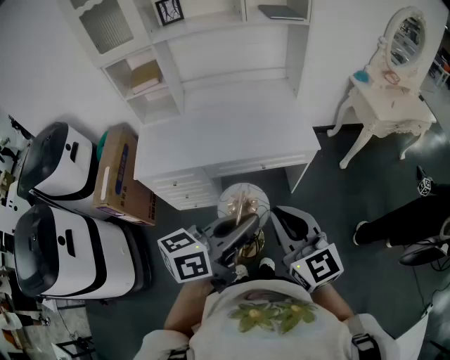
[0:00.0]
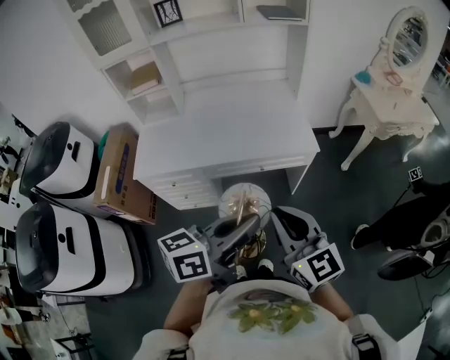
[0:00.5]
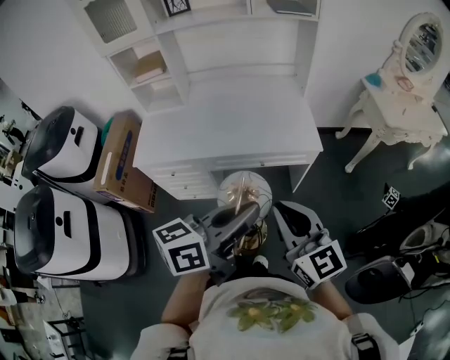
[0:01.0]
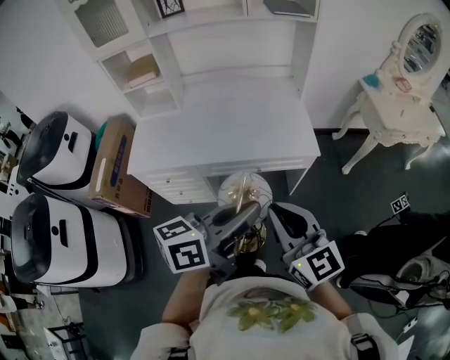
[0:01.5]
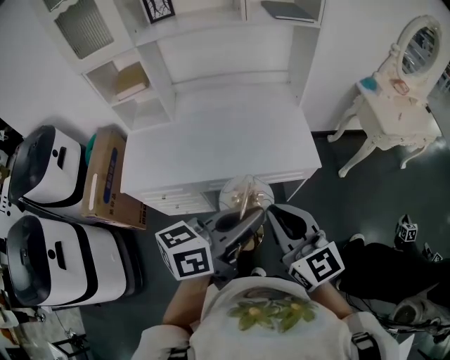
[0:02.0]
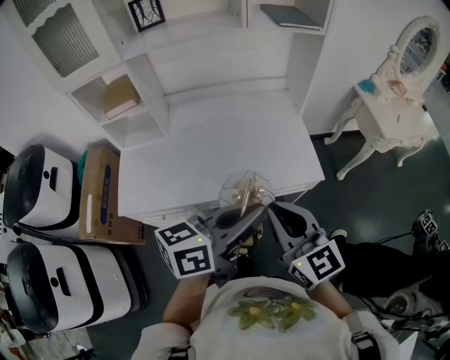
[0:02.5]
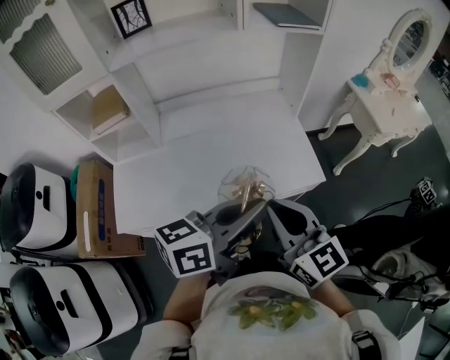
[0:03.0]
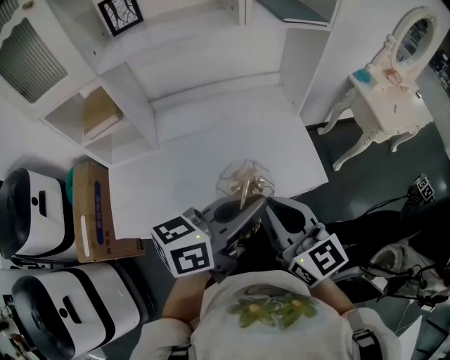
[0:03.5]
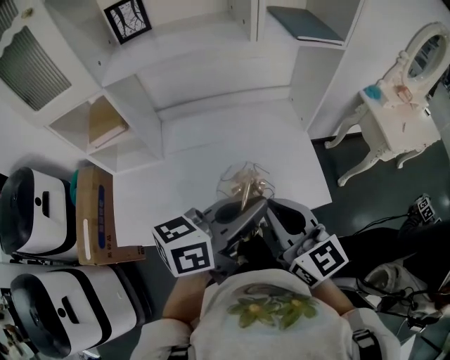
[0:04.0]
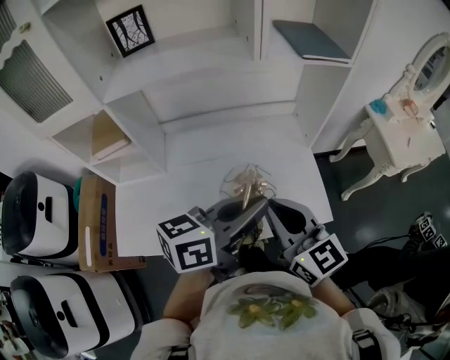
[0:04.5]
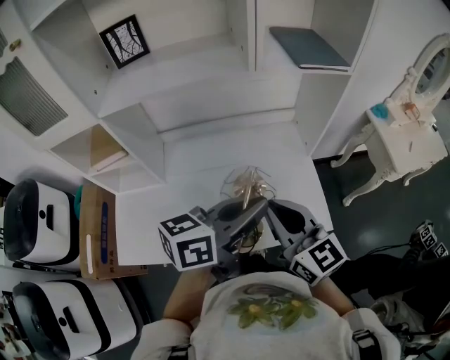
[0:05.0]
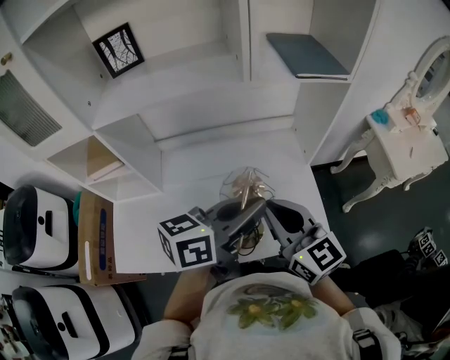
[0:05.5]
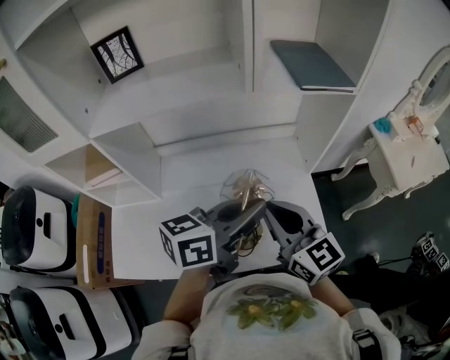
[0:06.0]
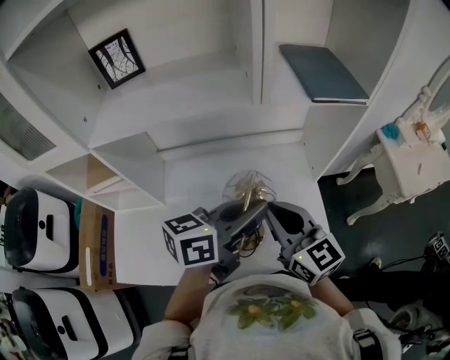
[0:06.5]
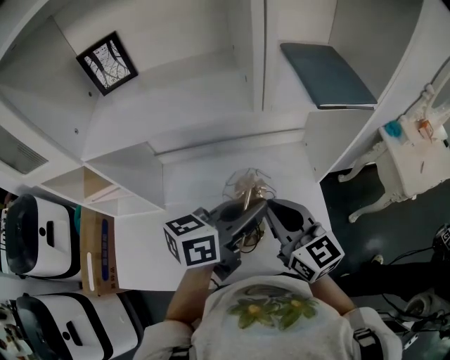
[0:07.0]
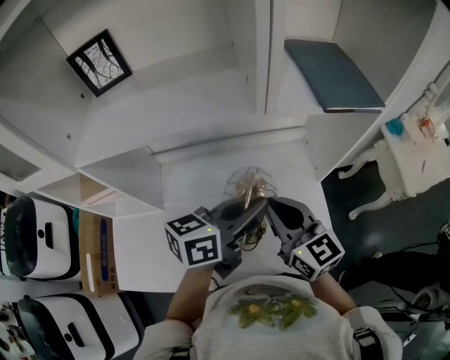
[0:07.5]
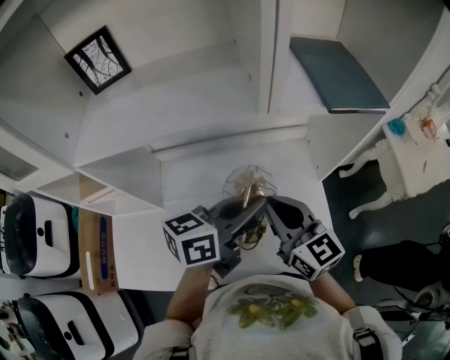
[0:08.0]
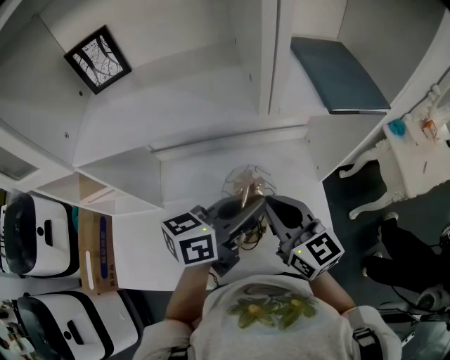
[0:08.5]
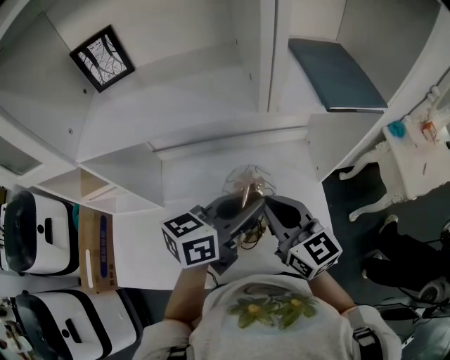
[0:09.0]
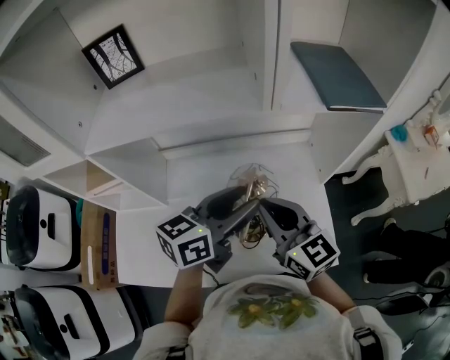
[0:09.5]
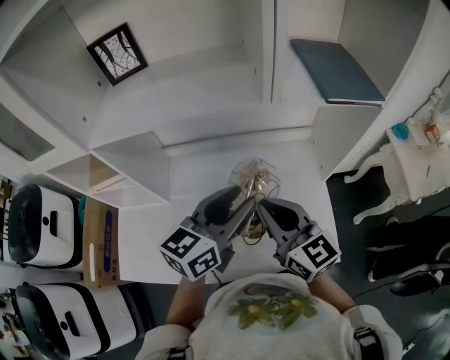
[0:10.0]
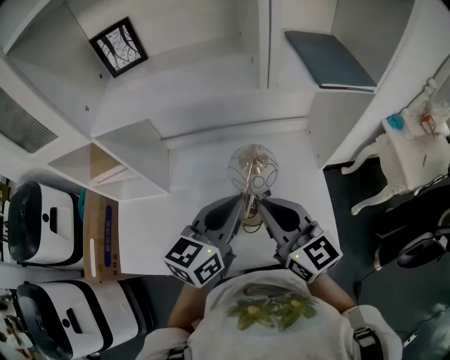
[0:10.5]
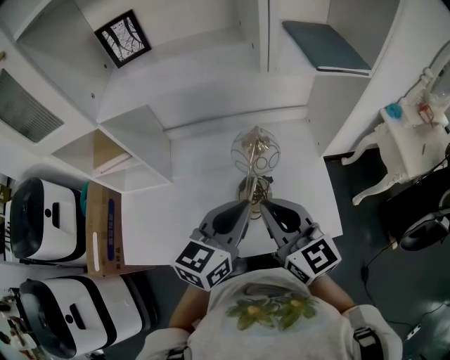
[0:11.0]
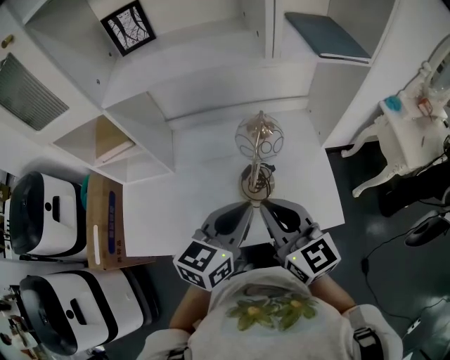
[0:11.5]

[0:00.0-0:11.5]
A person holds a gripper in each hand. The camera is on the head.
0:00.0 to 0:02.0: Both grippers travel together forward, approximately 15 cm.
0:02.0 to 0:04.0: The grippers both shift forward and to the left by some 25 cm.
0:04.0 to 0:06.0: The grippers both shift forward by about 15 cm.
0:06.0 to 0:07.5: Both grippers travel together forward, some 10 cm.
0:07.5 to 0:09.5: The left gripper opens.
0:09.5 to 0:11.5: Both grippers travel together backward, about 15 cm. The left gripper closes up.

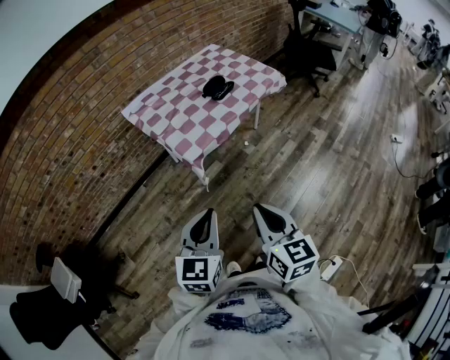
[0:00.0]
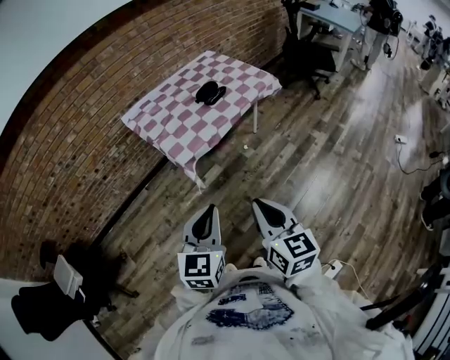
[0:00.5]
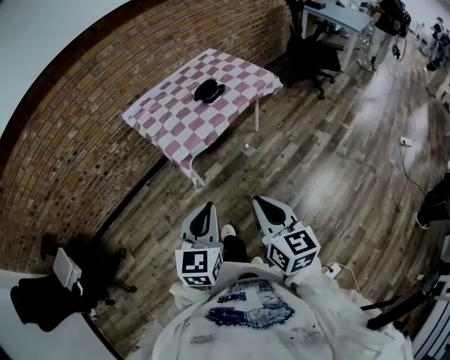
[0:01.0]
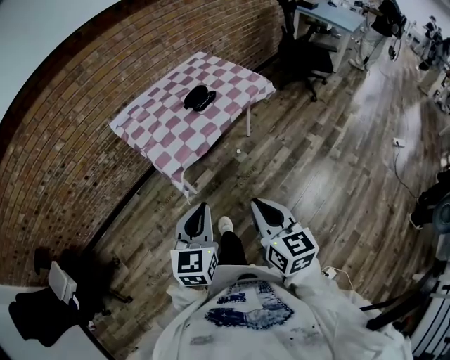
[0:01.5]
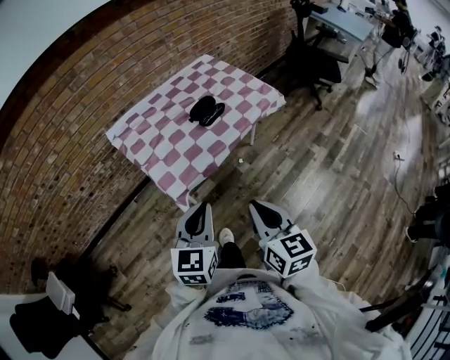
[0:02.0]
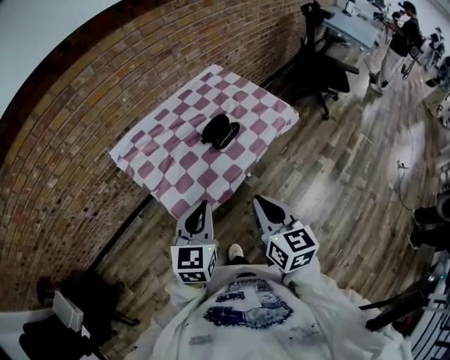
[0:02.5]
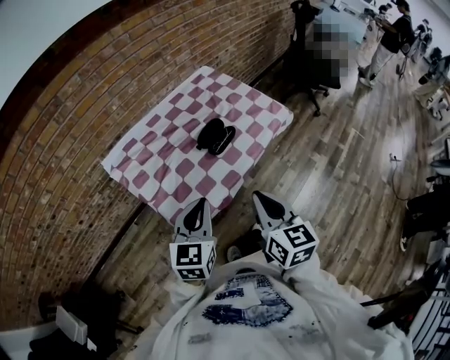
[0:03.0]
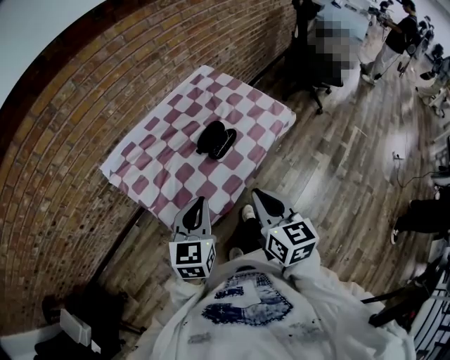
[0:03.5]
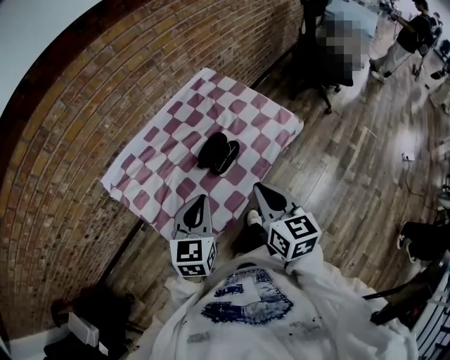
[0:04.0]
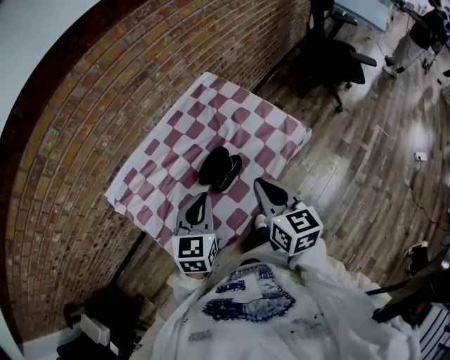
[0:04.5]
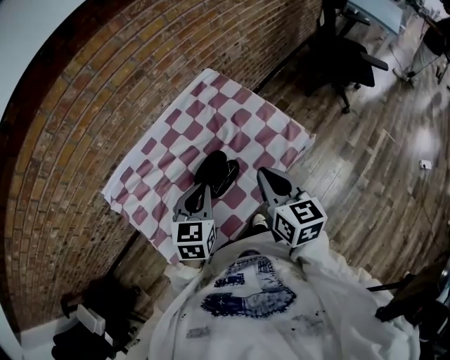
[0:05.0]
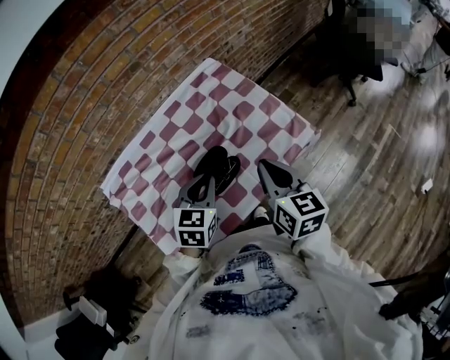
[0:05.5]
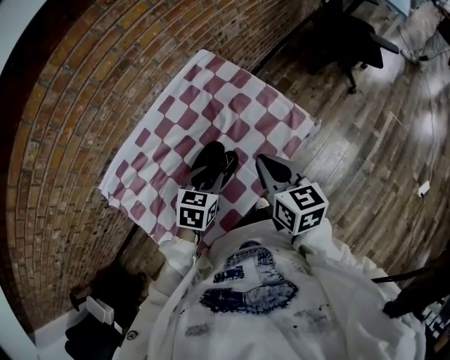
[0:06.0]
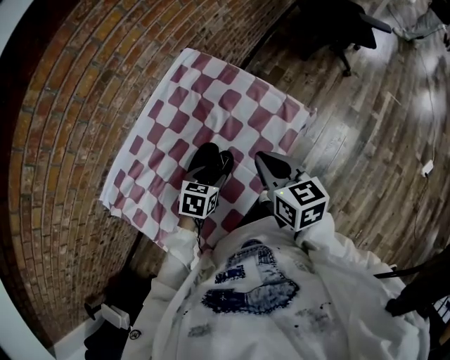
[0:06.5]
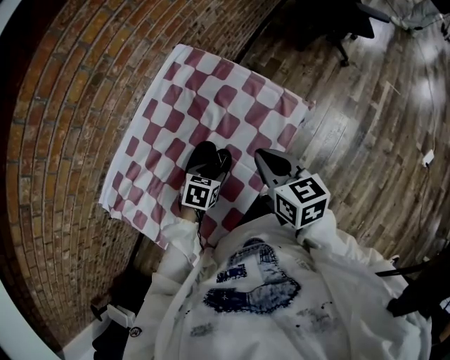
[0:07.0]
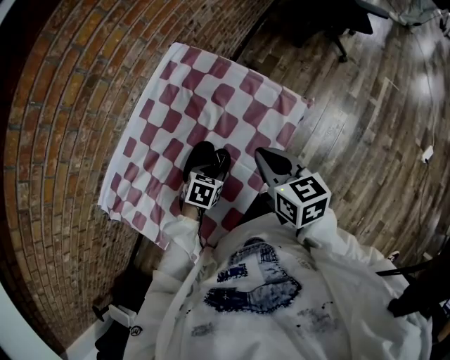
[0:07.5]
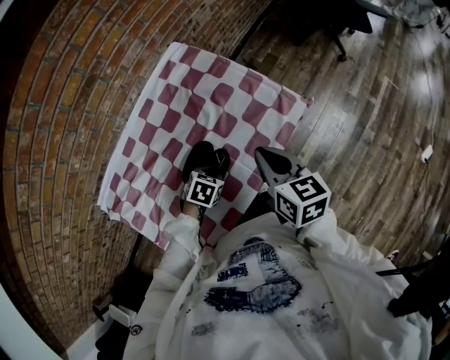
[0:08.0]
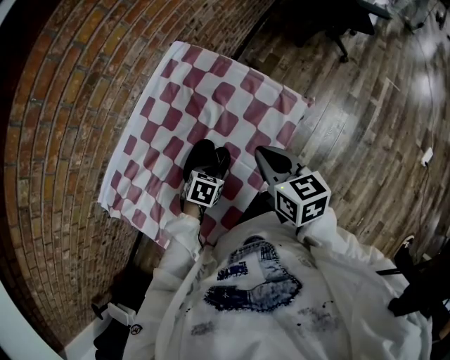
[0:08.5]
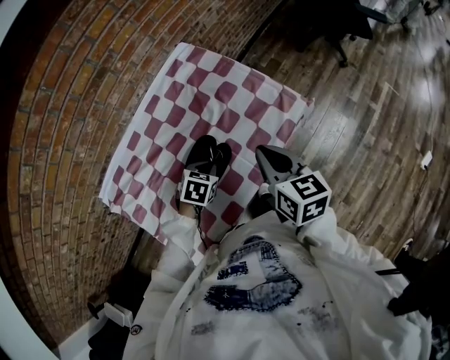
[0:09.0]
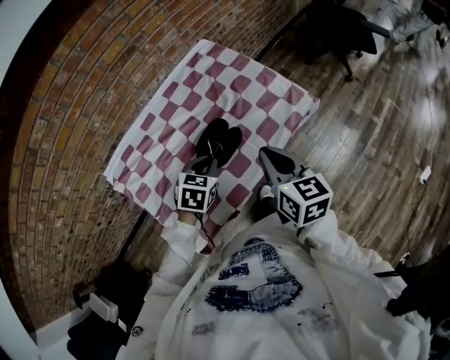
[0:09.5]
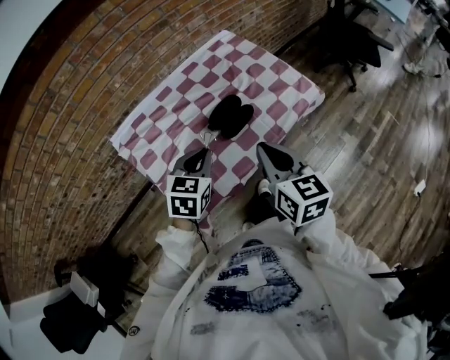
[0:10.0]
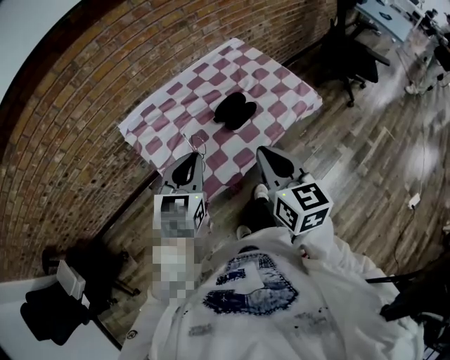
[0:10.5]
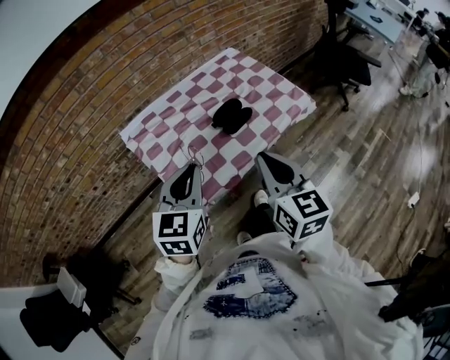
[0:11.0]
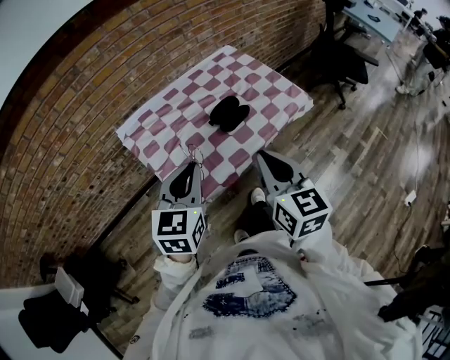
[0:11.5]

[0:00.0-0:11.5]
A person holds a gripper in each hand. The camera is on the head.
0:00.0 to 0:02.0: Both grippers travel together forward and to the right, some 20 cm.
0:02.0 to 0:04.0: The grippers both shift forward by some 30 cm.
0:04.0 to 0:06.0: The left gripper moves forward, downward and to the right, some 25 cm, changes its angle by some 30 degrees, and opens, while the right gripper is displaced forward and to the right by about 20 cm.
0:06.0 to 0:07.5: The left gripper shifts approximately 15 cm downward, rotates roughly 30 degrees, and opens and closes again.
0:07.5 to 0:09.5: The right gripper goes approximately 10 cm backward and upward. Meanwhile the left gripper travels upward and backward by approximately 15 cm, changes its angle by about 20 degrees, and closes up.
0:09.5 to 0:11.5: Both grippers travel together backward, upward and to the left, approximately 30 cm. The left gripper tilts its fingers some 30 degrees upward.

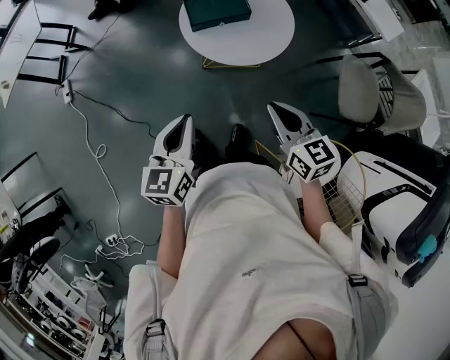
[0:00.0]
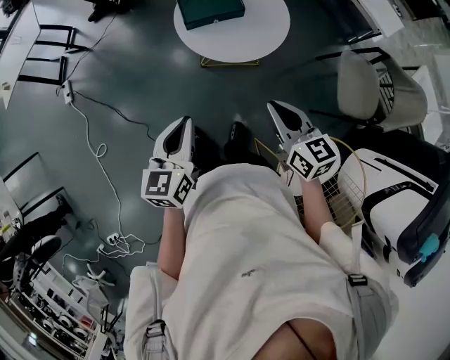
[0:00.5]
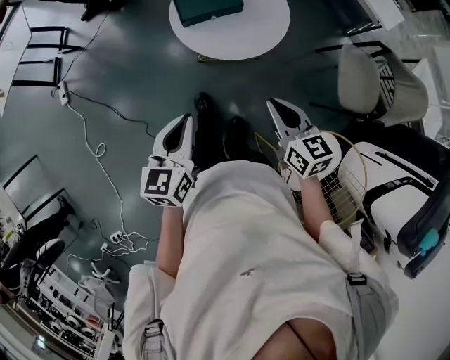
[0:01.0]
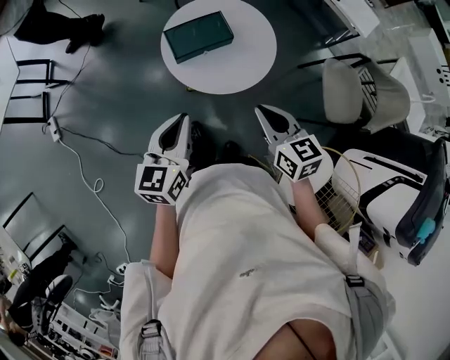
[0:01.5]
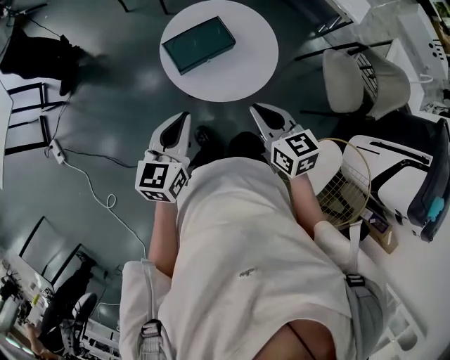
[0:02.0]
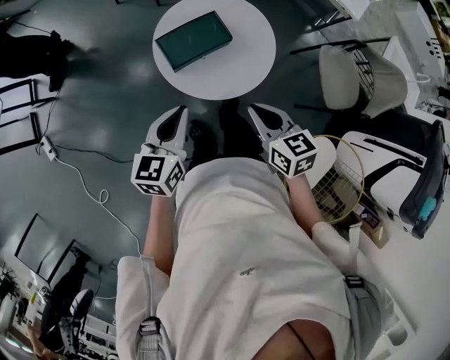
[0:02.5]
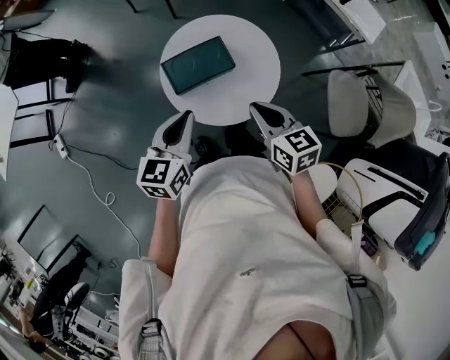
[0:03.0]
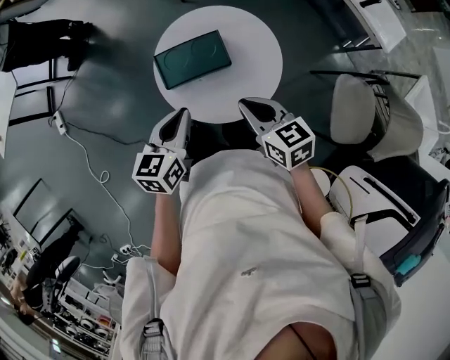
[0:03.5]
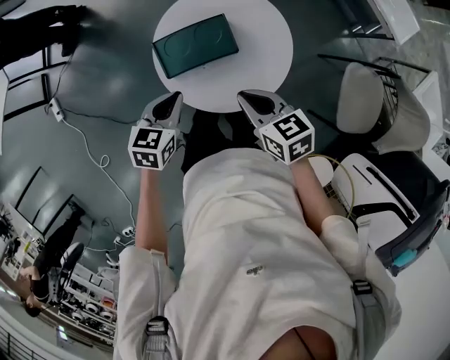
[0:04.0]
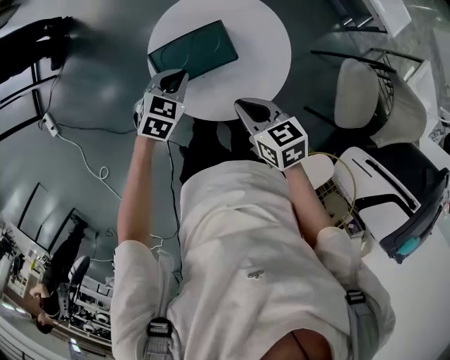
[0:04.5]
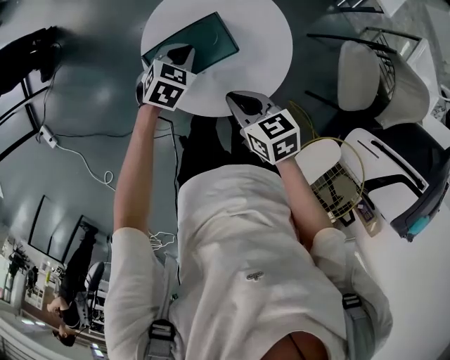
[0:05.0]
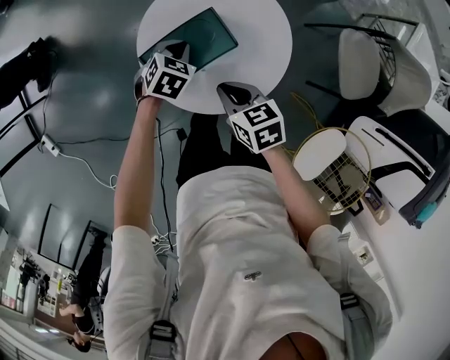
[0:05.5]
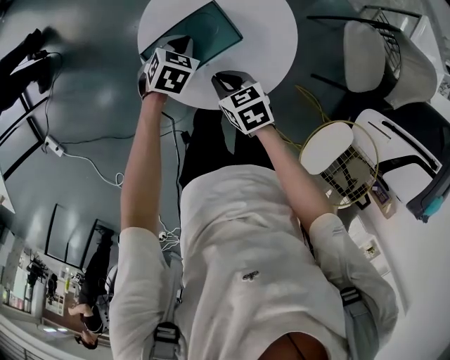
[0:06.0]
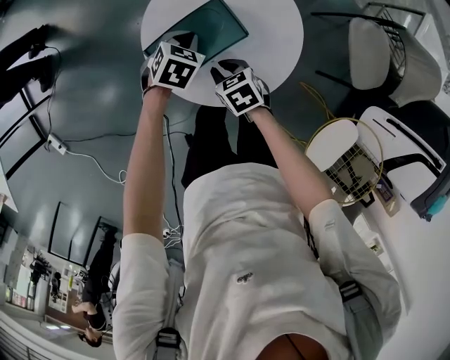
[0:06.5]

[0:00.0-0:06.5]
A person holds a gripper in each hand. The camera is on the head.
0:00.0 to 0:02.0: The left gripper shifts roughly 20 cm forward, and rotates some 20 degrees. The right gripper is displaced forward and to the left by some 15 cm.
0:02.0 to 0:04.5: The right gripper is displaced forward and downward by some 20 cm, and rotates some 20 degrees, while the left gripper travels forward and downward by some 30 cm, and angles its fingers downward, by some 30 degrees.
0:04.5 to 0:06.5: The left gripper shifts some 10 cm downward and forward. The right gripper shifts some 20 cm downward and to the left.
